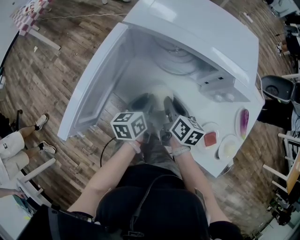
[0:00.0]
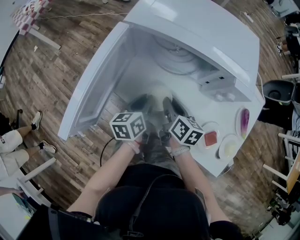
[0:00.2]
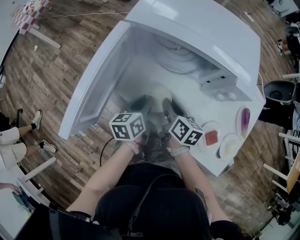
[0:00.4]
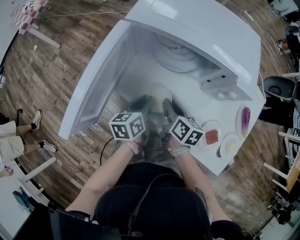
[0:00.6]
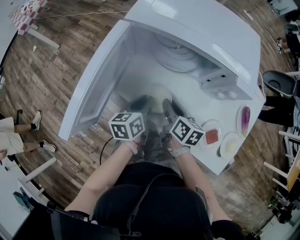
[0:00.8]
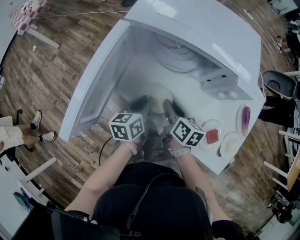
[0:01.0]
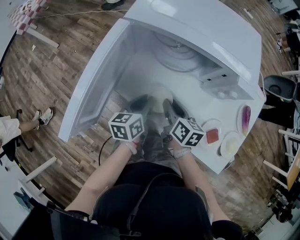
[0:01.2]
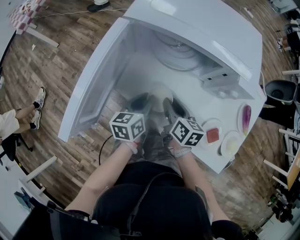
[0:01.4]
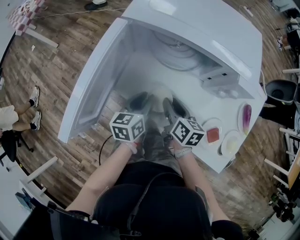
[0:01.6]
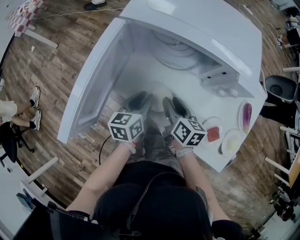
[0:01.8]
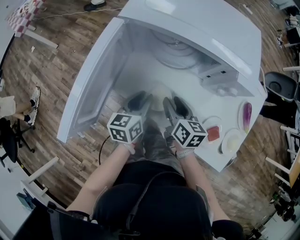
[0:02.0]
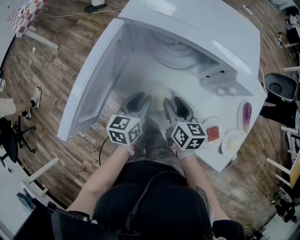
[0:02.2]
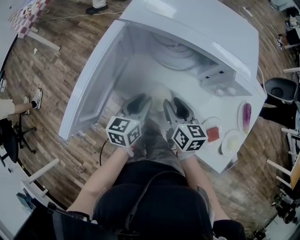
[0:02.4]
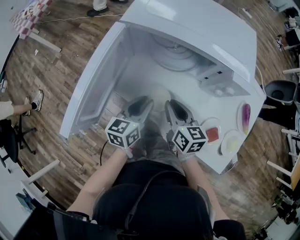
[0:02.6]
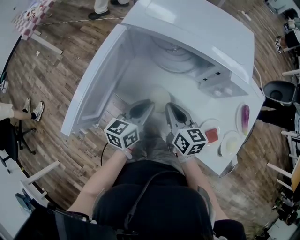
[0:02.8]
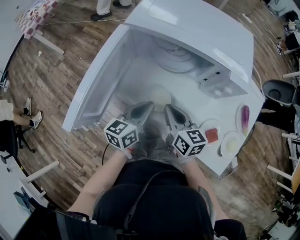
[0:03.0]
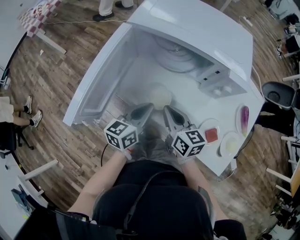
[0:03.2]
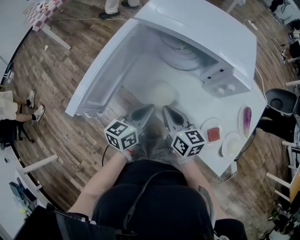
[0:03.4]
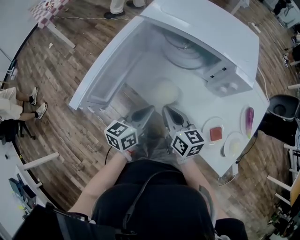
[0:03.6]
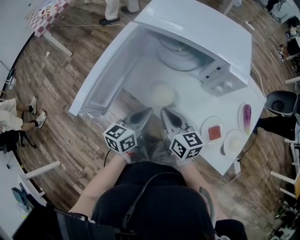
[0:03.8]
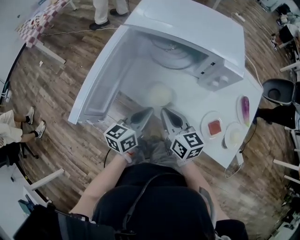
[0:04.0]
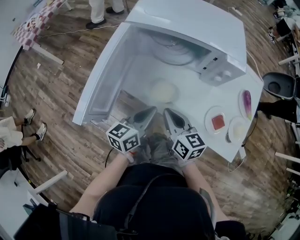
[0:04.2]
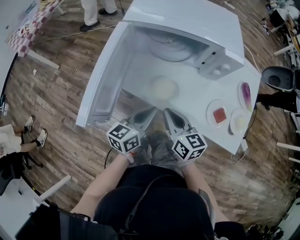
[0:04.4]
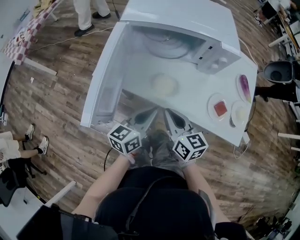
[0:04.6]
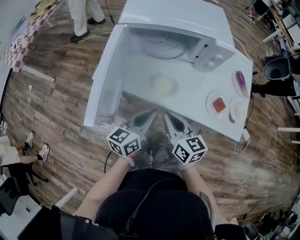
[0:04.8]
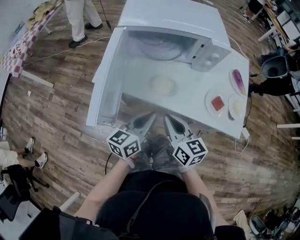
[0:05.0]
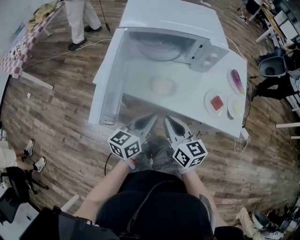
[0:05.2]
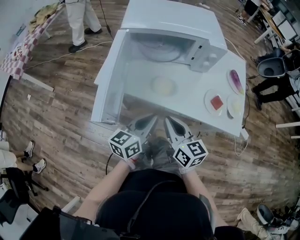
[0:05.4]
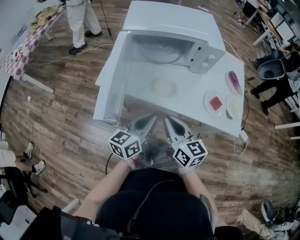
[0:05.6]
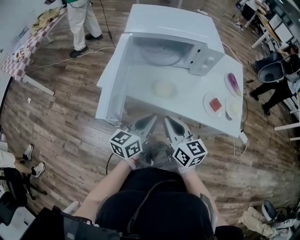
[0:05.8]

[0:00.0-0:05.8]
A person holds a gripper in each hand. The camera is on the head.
0:00.0 to 0:01.4: The grippers move only a little.
0:01.4 to 0:02.8: The left gripper ends up approximately 5 cm from where it was, while the right gripper goes about 5 cm upward, and closes its fingers.
0:02.8 to 0:04.4: The grippers both shift backward by approximately 10 cm.
0:04.4 to 0:05.8: The right gripper heads backward and upward, covering some 10 cm; the left gripper moves backward, approximately 5 cm.

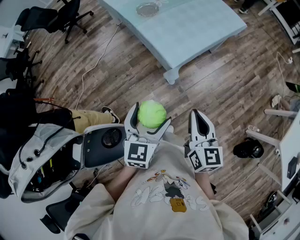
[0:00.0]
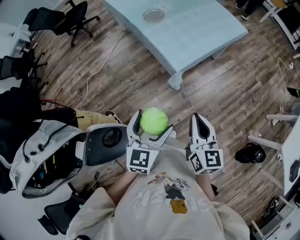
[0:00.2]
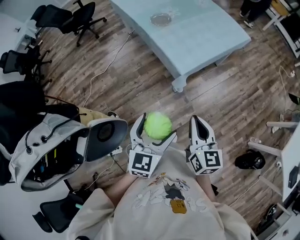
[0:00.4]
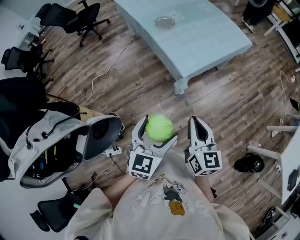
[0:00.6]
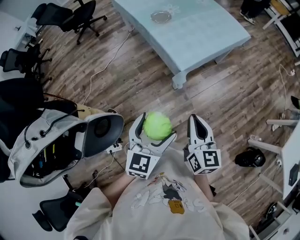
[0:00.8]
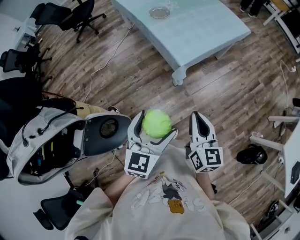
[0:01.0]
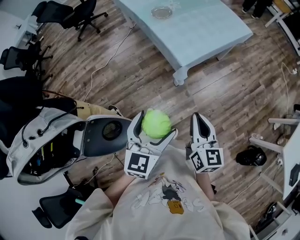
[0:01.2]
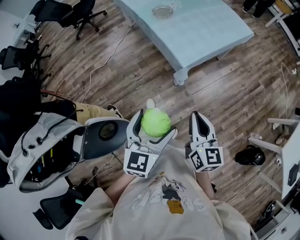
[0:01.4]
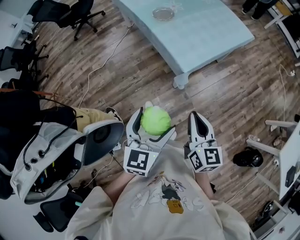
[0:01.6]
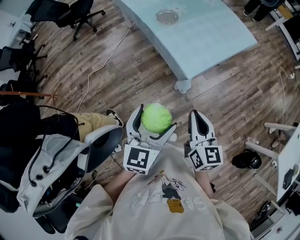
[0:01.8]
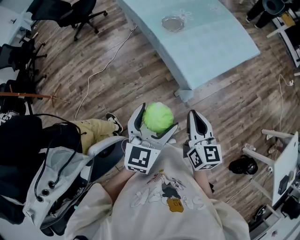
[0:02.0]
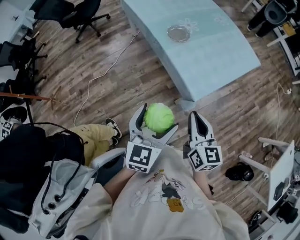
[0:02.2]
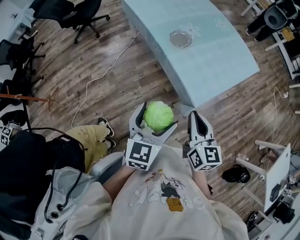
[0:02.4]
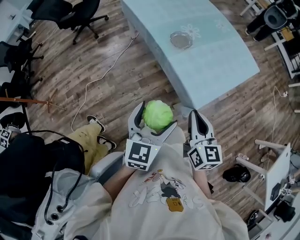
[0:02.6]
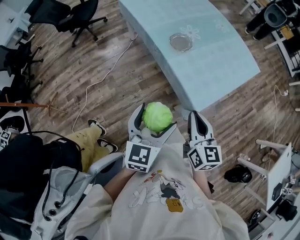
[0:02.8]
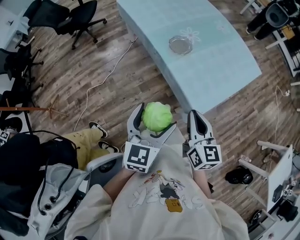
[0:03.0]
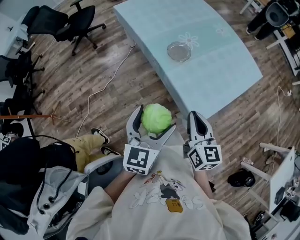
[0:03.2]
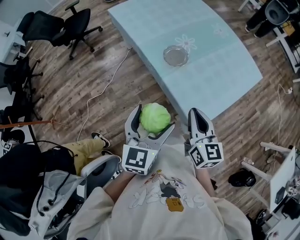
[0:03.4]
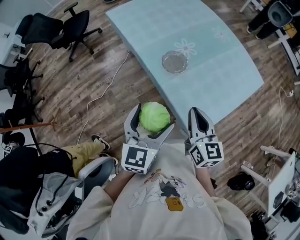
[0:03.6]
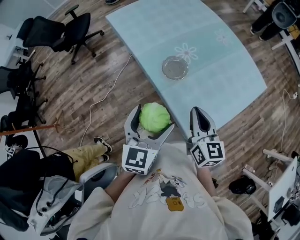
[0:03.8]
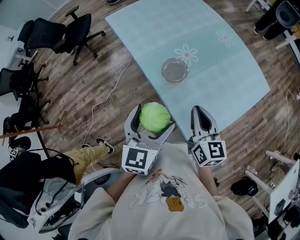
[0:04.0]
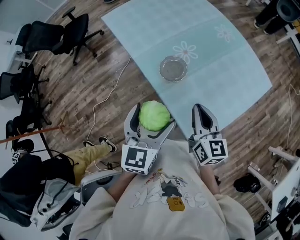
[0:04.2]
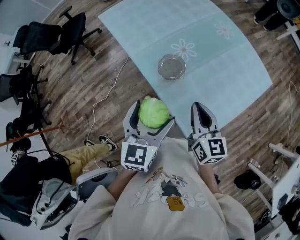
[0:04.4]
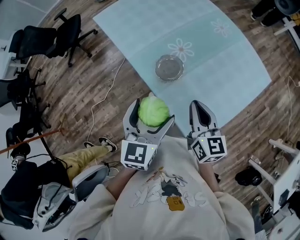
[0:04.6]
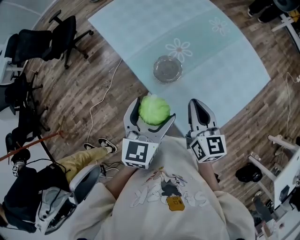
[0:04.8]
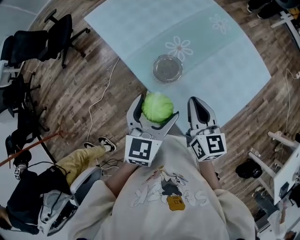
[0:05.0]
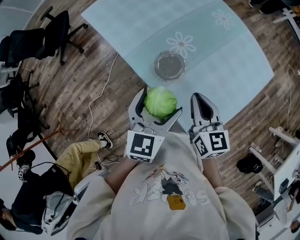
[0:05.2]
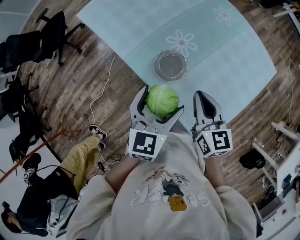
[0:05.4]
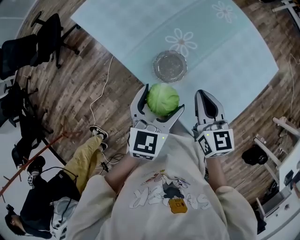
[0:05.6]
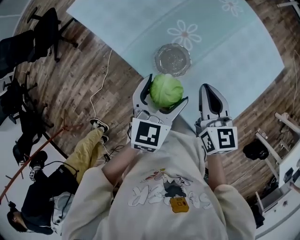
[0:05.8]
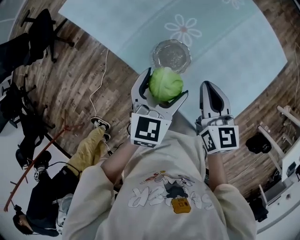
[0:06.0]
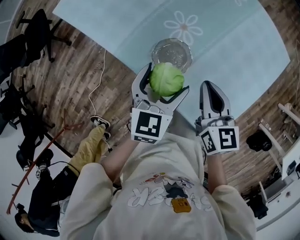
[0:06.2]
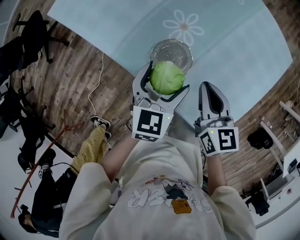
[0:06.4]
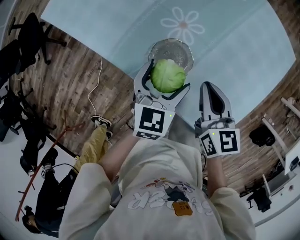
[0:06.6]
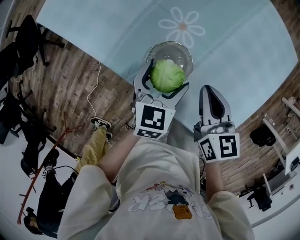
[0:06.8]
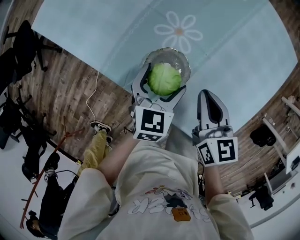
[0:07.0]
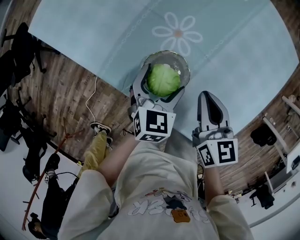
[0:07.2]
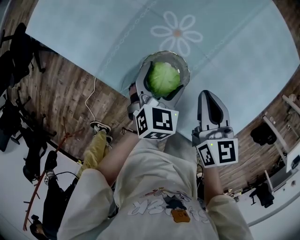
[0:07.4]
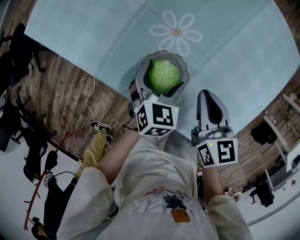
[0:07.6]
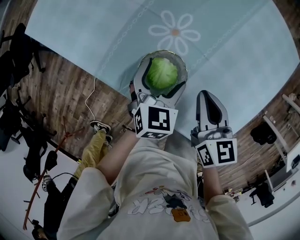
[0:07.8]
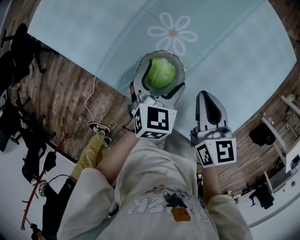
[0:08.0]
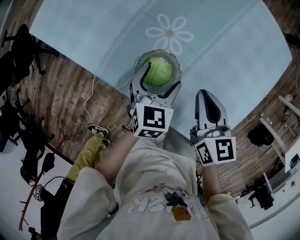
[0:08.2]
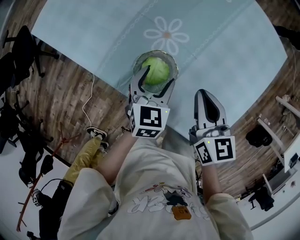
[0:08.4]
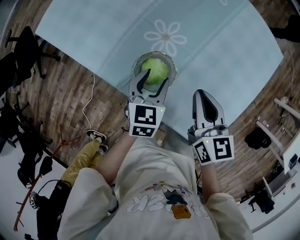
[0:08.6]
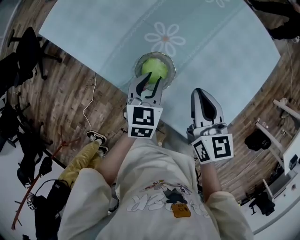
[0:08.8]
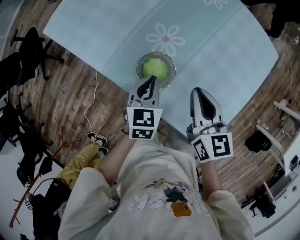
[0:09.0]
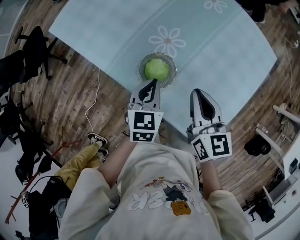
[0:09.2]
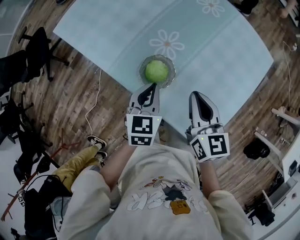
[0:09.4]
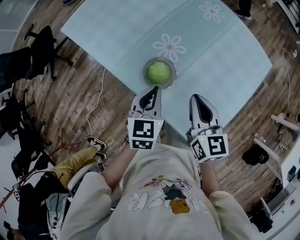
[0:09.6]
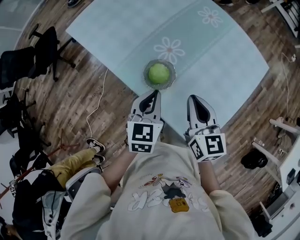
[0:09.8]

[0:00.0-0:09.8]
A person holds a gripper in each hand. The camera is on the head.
0:00.0 to 0:01.4: Both grippers travel together backward, some 5 cm.
0:01.4 to 0:02.8: Both grippers move forward and to the left, approximately 30 cm.
0:02.8 to 0:04.2: The grippers both shift forward by some 30 cm.
0:04.2 to 0:05.6: The right gripper moves forward, about 10 cm; the left gripper is displaced forward and downward by approximately 15 cm.
0:05.6 to 0:07.0: The right gripper moves downward and forward, about 15 cm; the left gripper travels downward and forward by roughly 25 cm.
0:07.0 to 0:08.4: The grippers move only a little.
0:08.4 to 0:09.8: The two grippers go roughly 15 cm upward and backward. The left gripper closes up.

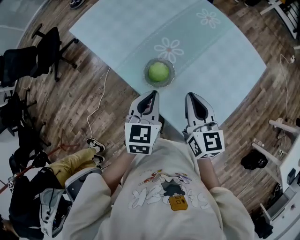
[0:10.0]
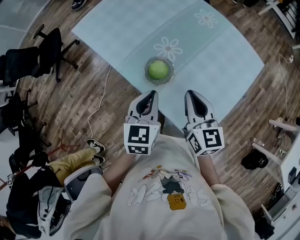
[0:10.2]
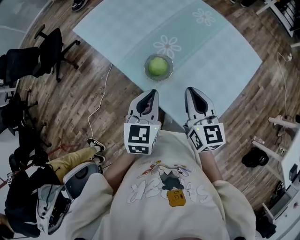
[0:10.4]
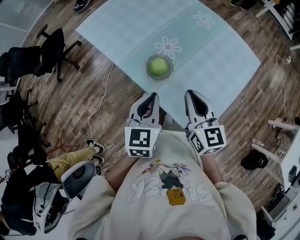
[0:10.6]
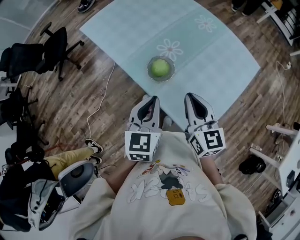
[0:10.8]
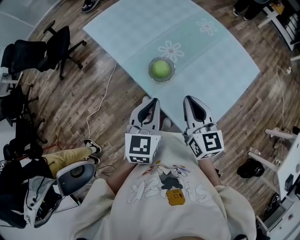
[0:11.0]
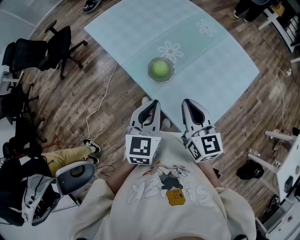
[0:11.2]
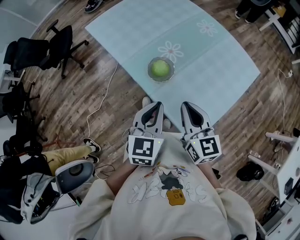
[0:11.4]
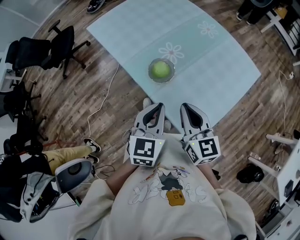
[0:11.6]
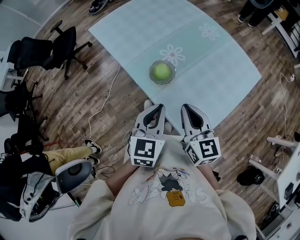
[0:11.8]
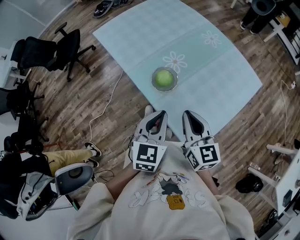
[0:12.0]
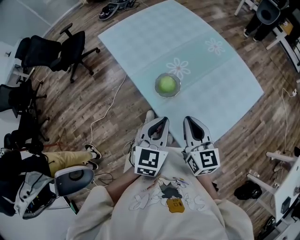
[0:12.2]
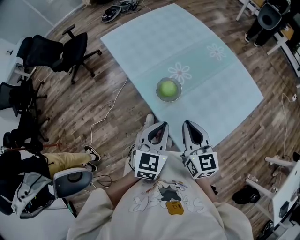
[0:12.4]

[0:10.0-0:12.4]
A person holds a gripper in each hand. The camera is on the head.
0:10.0 to 0:11.2: The right gripper heads backward, covering some 10 cm, while the left gripper travels backward and upward by roughly 15 cm.
0:11.2 to 0:12.4: The grippers make only small movements.

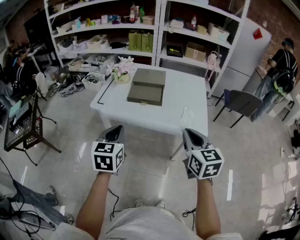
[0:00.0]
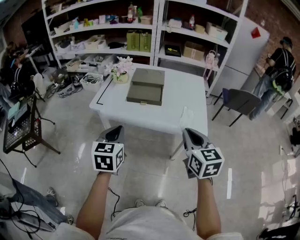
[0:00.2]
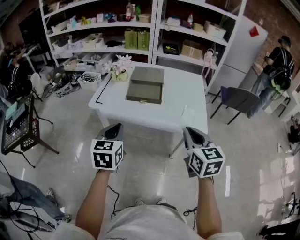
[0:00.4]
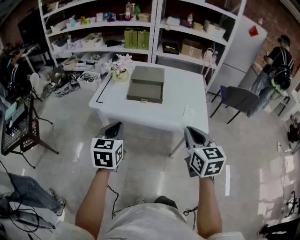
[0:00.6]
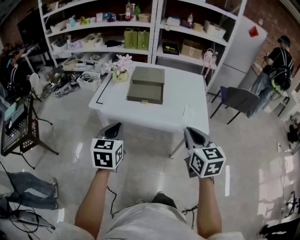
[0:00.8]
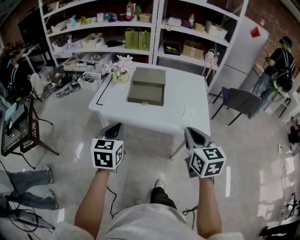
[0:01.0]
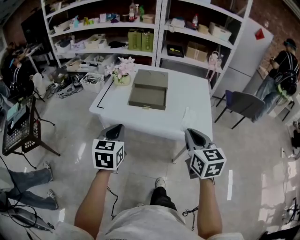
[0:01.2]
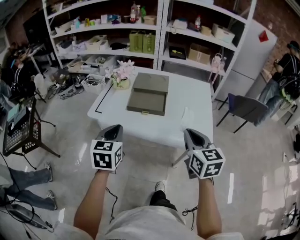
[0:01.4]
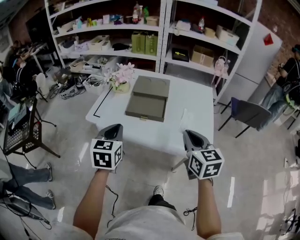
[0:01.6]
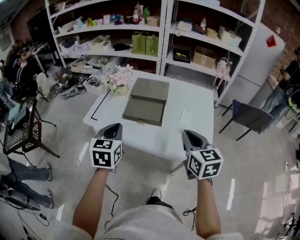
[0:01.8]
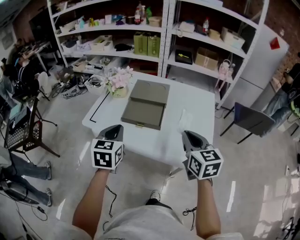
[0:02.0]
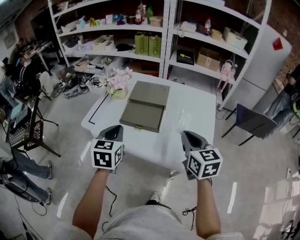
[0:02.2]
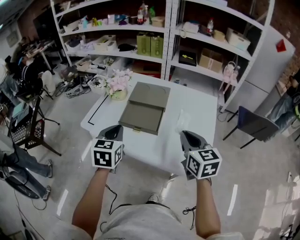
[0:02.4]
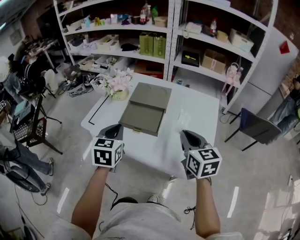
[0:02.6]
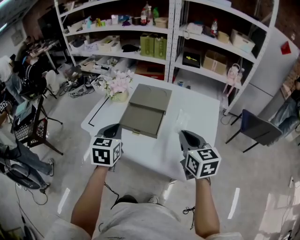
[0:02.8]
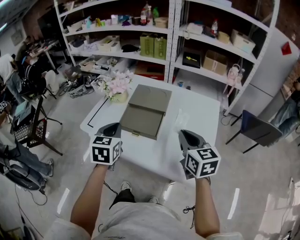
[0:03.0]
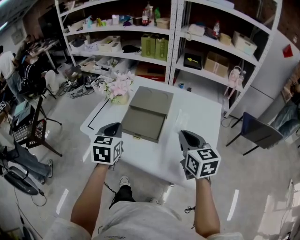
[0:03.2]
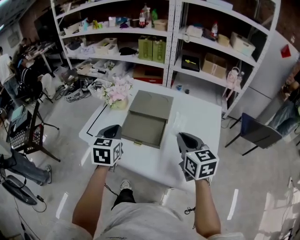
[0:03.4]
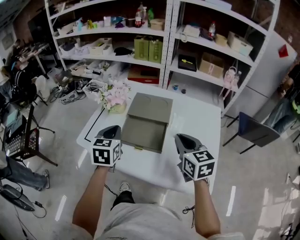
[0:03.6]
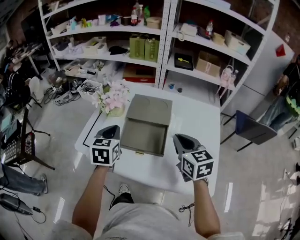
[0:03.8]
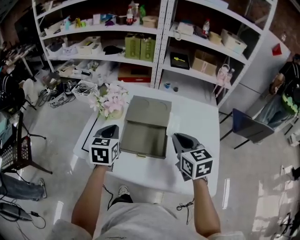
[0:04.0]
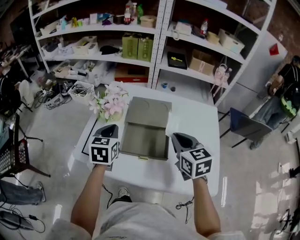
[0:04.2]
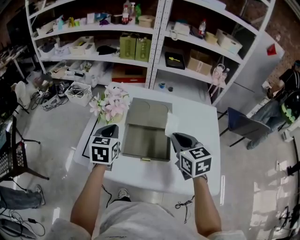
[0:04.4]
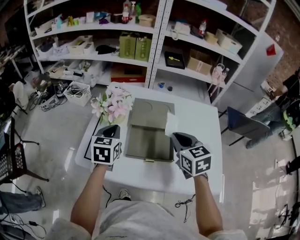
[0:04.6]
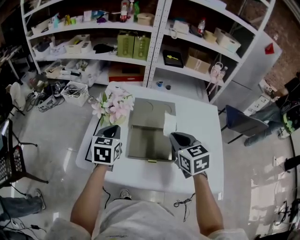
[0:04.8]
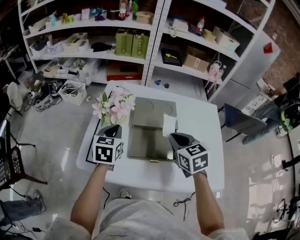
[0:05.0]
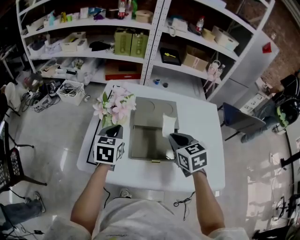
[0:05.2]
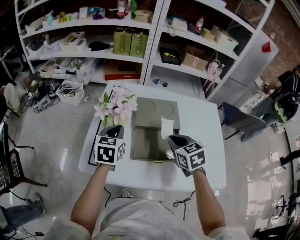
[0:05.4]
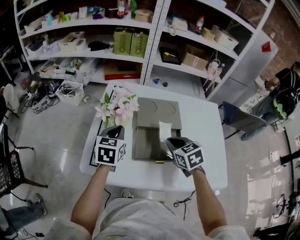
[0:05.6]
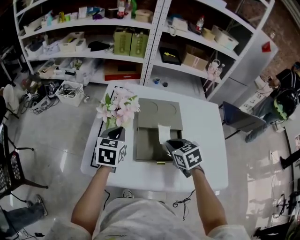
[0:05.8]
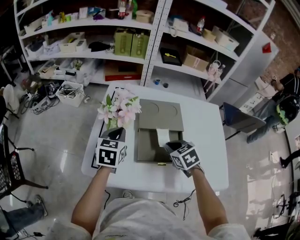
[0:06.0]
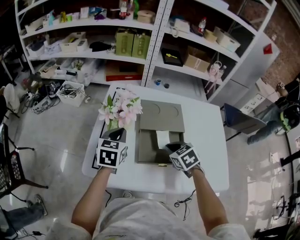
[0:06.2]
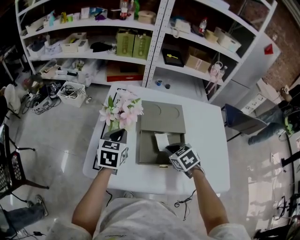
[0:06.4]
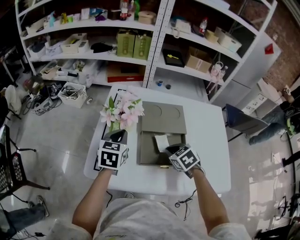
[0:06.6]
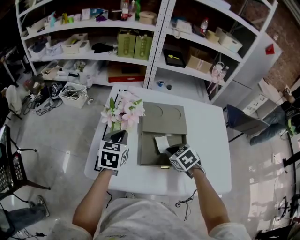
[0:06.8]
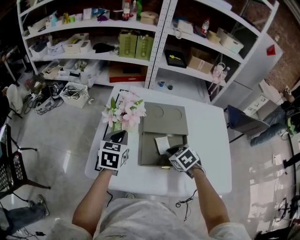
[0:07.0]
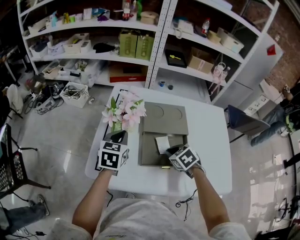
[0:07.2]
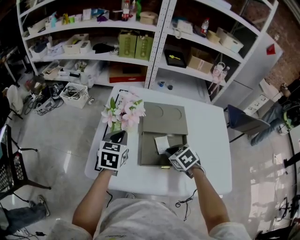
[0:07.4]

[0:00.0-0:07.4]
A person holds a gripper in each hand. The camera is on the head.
0:00.0 to 0:01.4: Both grippers move forward, roughly 10 cm.
0:01.4 to 0:03.0: Both grippers travel together forward and to the right, about 20 cm.
0:03.0 to 0:04.4: The left gripper goes approximately 20 cm forward, while the right gripper shifts about 15 cm forward and to the left.
0:04.4 to 0:06.0: The right gripper heads downward and to the left, covering roughly 15 cm, and rotates some 20 degrees; the left gripper changes place by approximately 5 cm.
0:06.0 to 0:07.4: The grippers stay close to where they were, moving slightly.
